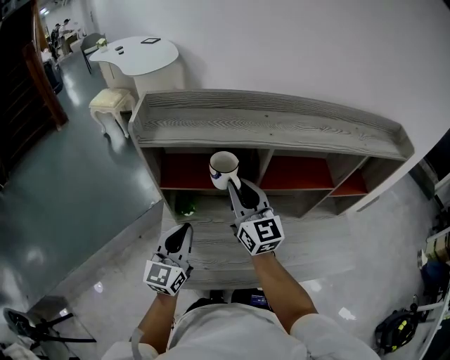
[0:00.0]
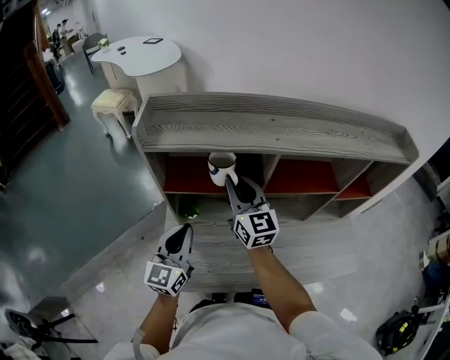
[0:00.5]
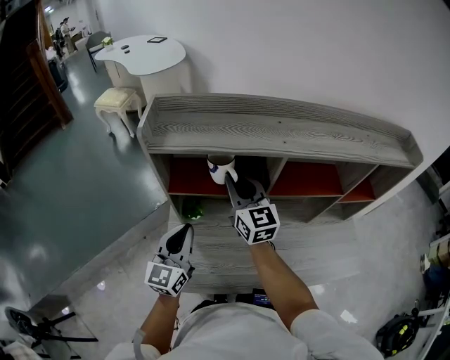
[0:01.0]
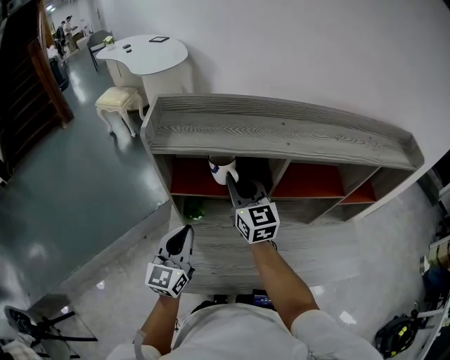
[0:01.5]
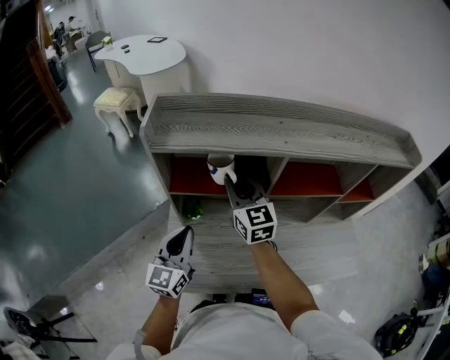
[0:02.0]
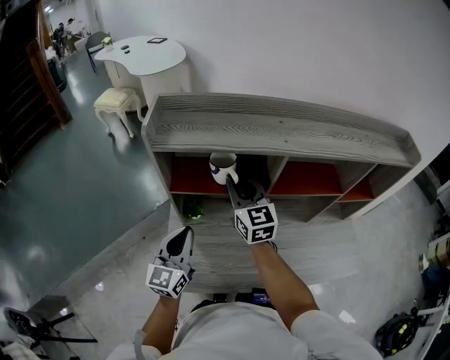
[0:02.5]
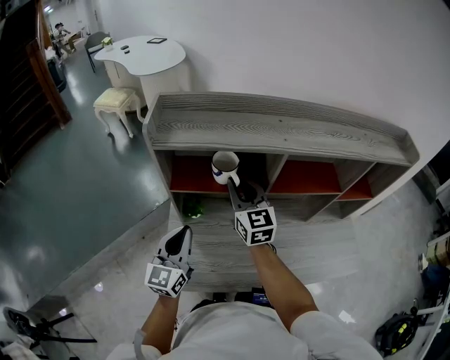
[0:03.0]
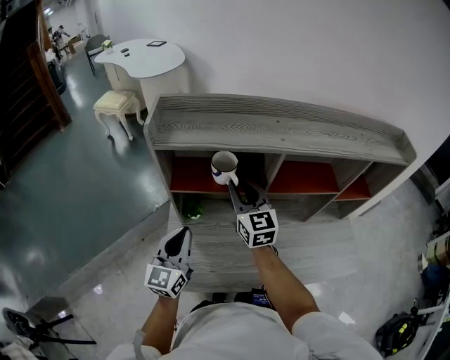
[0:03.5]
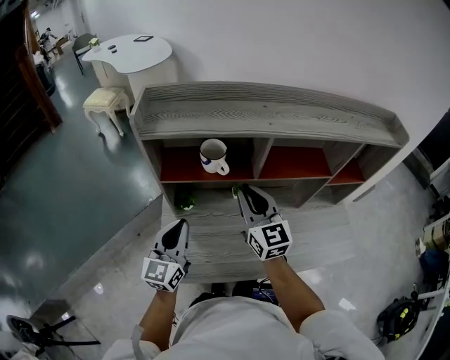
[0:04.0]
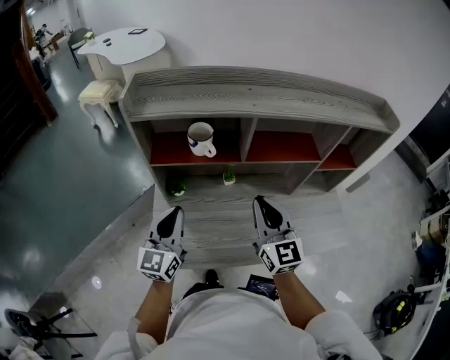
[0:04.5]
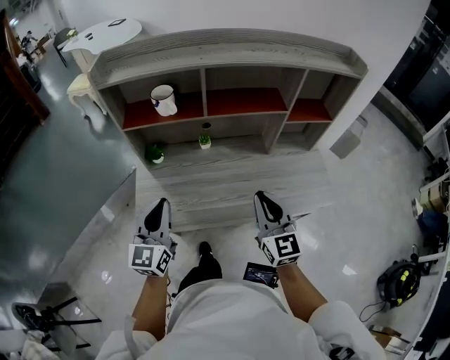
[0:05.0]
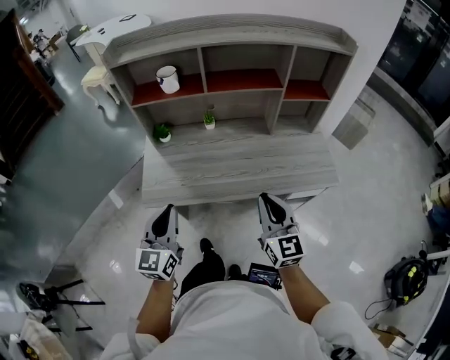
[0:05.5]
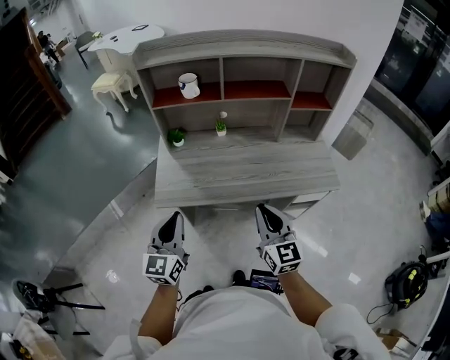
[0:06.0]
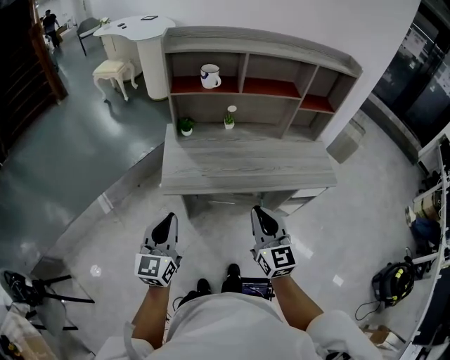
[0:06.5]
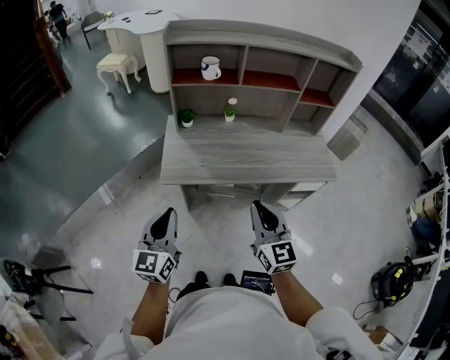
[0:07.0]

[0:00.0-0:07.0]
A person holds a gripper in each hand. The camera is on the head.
0:00.0 to 0:02.0: The right gripper travels forward by some 5 cm.
0:02.0 to 0:03.5: The grippers make only small movements.
0:03.5 to 0:05.0: The right gripper moves backward and to the right, some 35 cm; the left gripper moves backward and to the right, roughly 20 cm.
0:05.0 to 0:07.0: The right gripper heads backward and to the left, covering about 25 cm; the left gripper heads backward, covering approximately 25 cm.

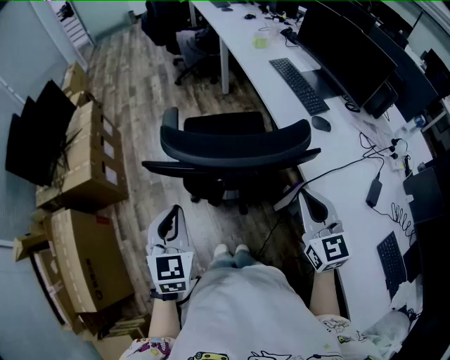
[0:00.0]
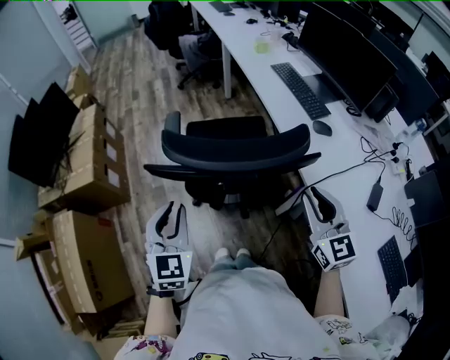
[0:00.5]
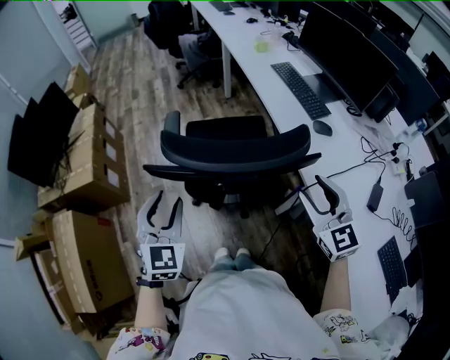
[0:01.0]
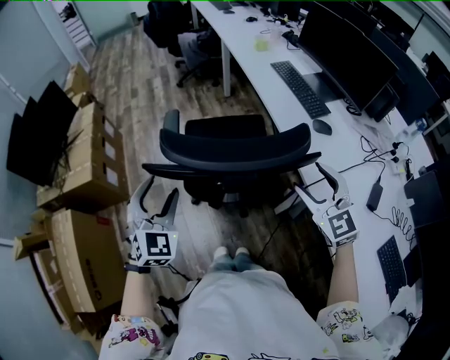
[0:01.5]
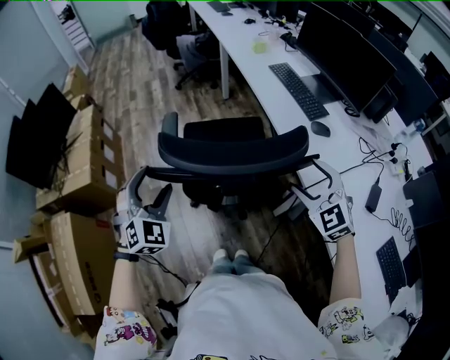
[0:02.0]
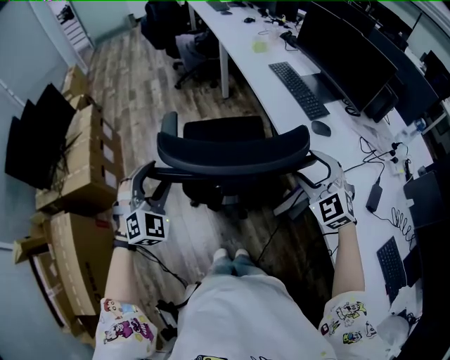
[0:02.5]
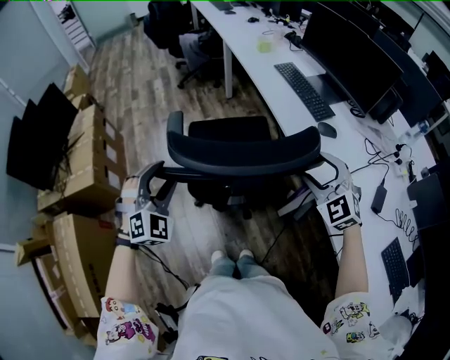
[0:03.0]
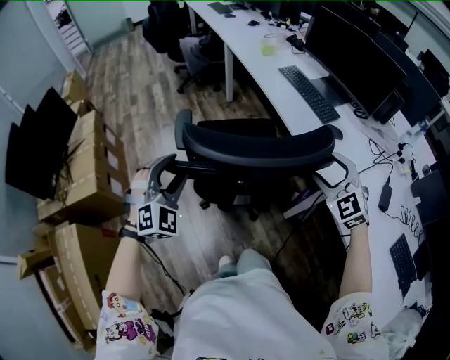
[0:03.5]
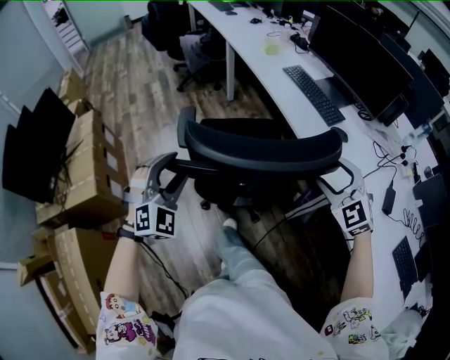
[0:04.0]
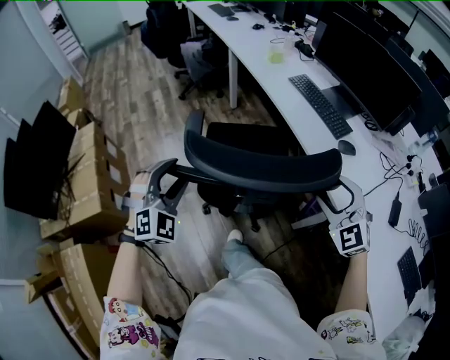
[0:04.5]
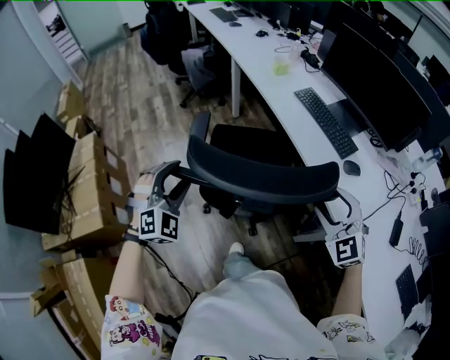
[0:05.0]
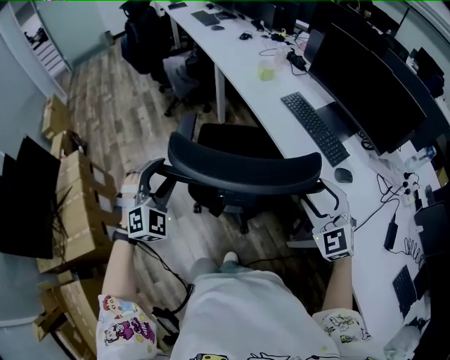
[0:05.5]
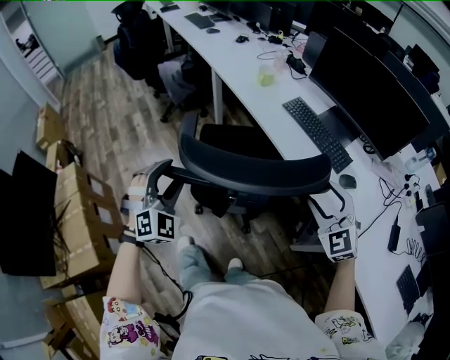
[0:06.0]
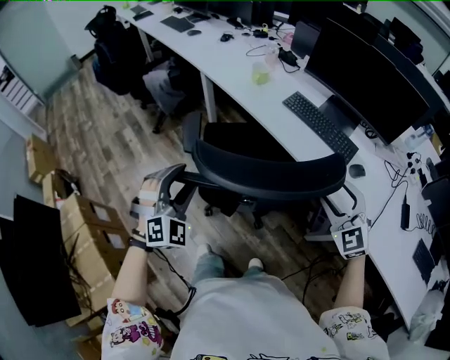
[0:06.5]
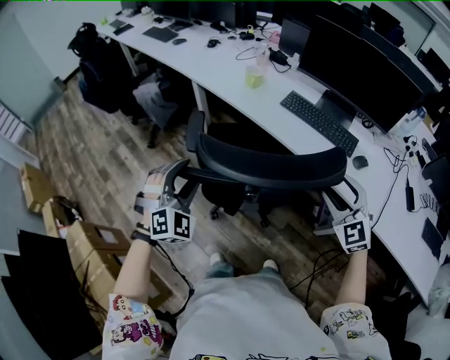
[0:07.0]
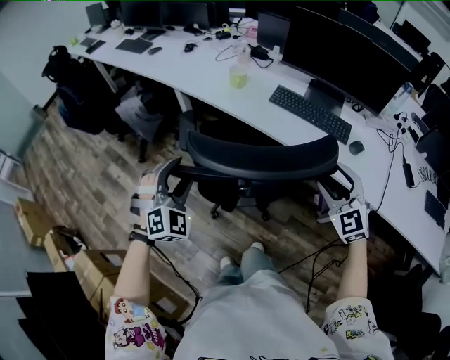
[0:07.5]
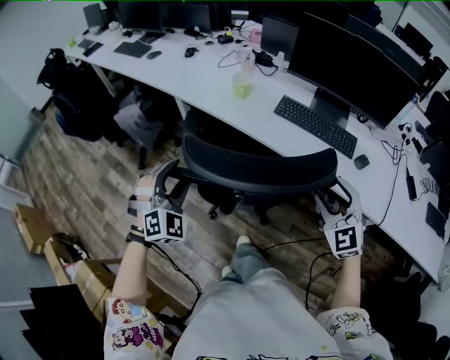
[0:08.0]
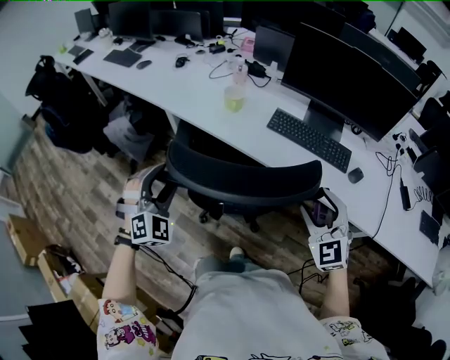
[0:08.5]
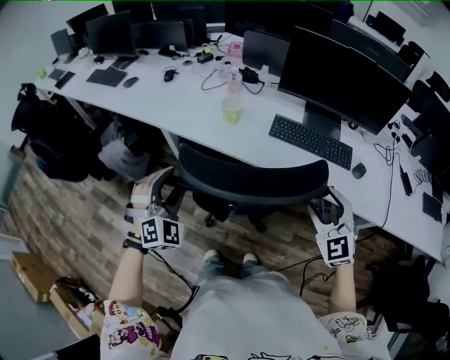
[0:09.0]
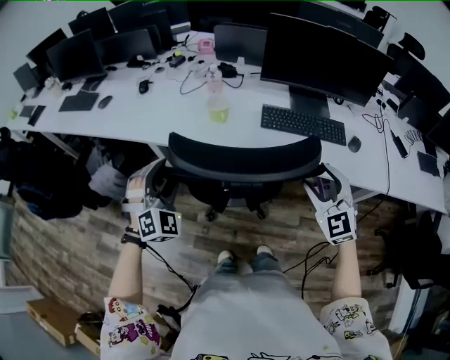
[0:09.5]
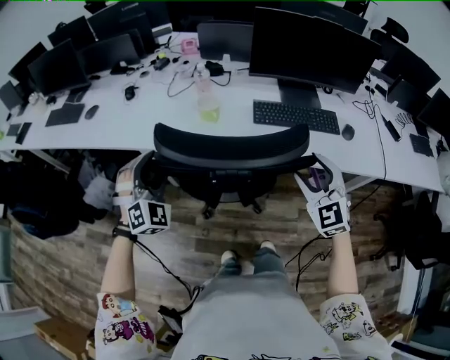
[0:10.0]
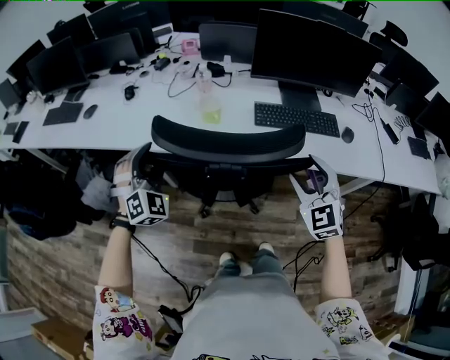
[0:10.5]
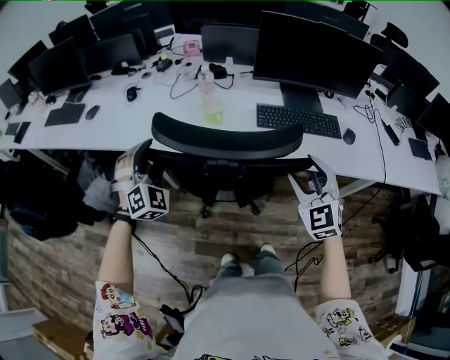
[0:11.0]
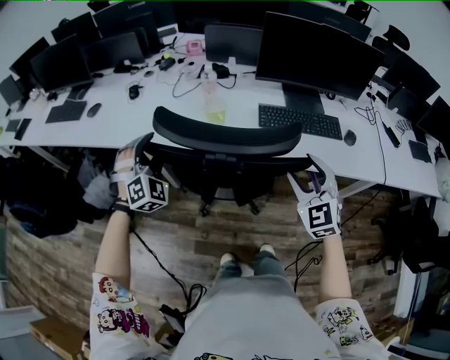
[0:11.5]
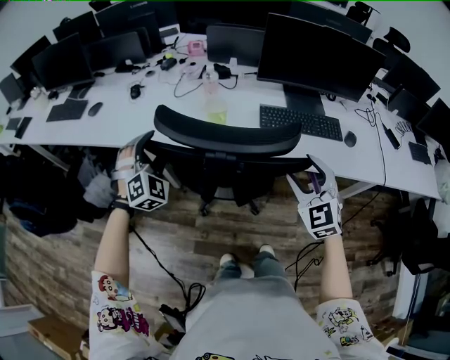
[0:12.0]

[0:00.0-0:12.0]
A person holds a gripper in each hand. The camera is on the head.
0:00.0 to 0:02.0: The two grippers go roughly 10 cm forward. The right gripper swivels approximately 40 degrees, and opens up. The left gripper turns by roughly 40 degrees, and opens.
0:02.0 to 0:04.0: The right gripper shifts by about 5 cm, while the left gripper heads forward, covering some 10 cm.
0:04.0 to 0:06.0: The two grippers go roughly 25 cm forward.
0:06.0 to 0:08.0: The left gripper changes place by about 25 cm, and rotates approximately 30 degrees; the right gripper shifts by approximately 15 cm, and turns by roughly 30 degrees.
0:08.0 to 0:10.0: The left gripper moves forward, some 25 cm. Meanwhile the right gripper heads to the left and forward, covering approximately 15 cm, and rotates roughly 20 degrees.
0:10.0 to 0:12.0: The left gripper goes about 5 cm forward.

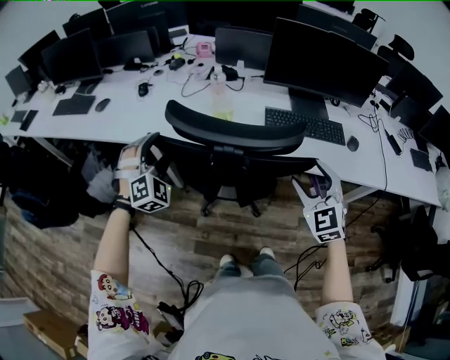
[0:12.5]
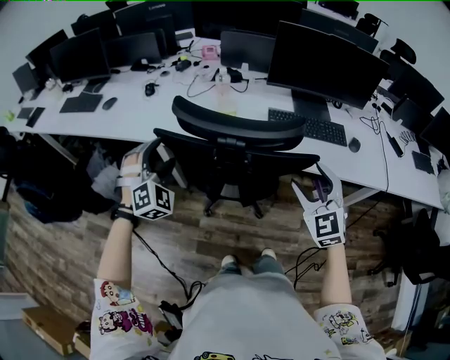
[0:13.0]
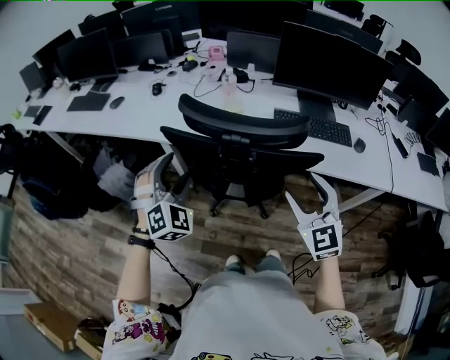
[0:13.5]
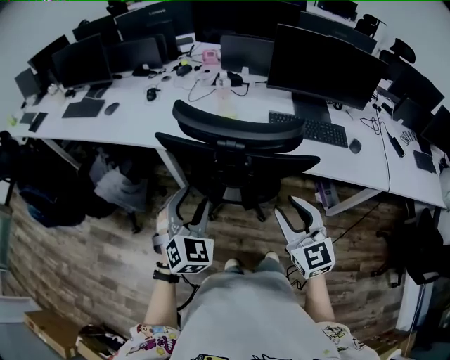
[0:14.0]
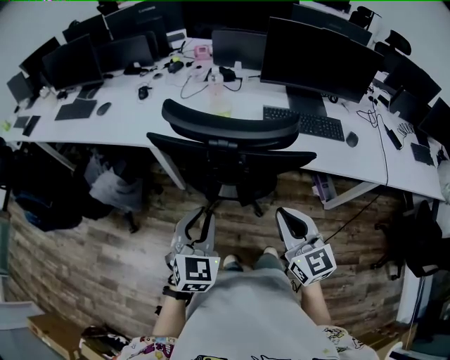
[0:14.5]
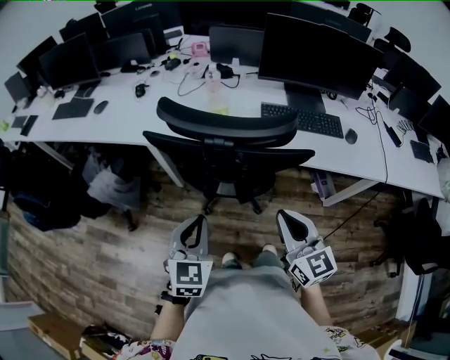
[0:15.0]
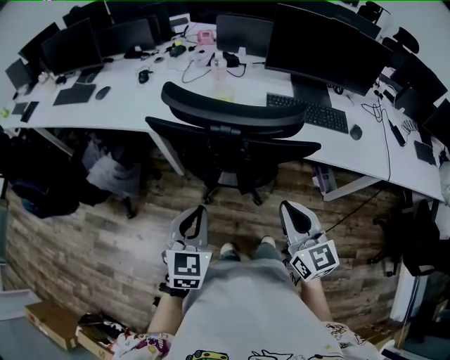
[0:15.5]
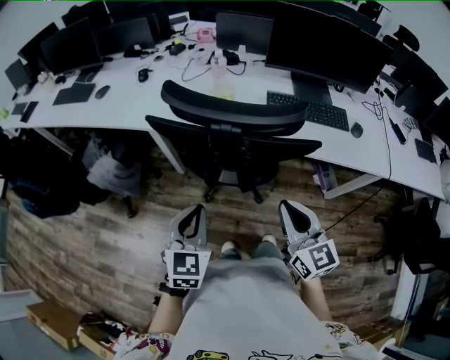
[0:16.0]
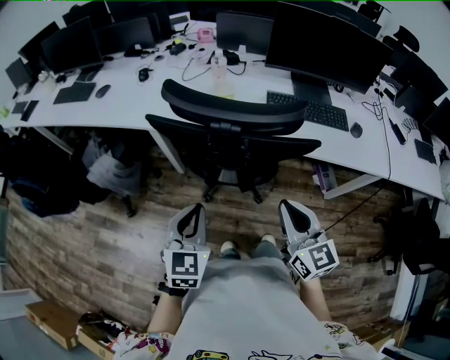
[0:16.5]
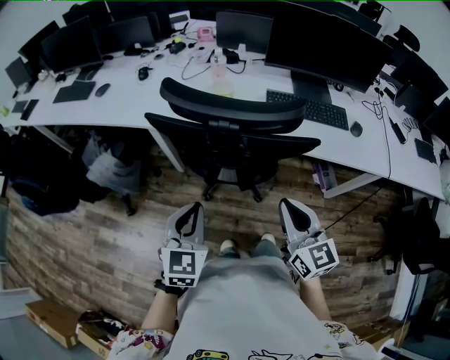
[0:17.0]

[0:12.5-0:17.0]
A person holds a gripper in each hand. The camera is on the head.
0:12.5 to 0:14.5: The left gripper moves backward and to the right, approximately 25 cm, twists roughly 50 degrees counterclockwise, seen from behind, and closes up, while the right gripper shifts some 15 cm backward and to the left, turns by roughly 40 degrees, and closes.
0:14.5 to 0:17.0: The grippers stay close to where they were, moving slightly.

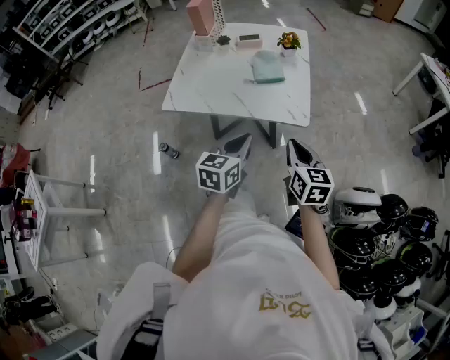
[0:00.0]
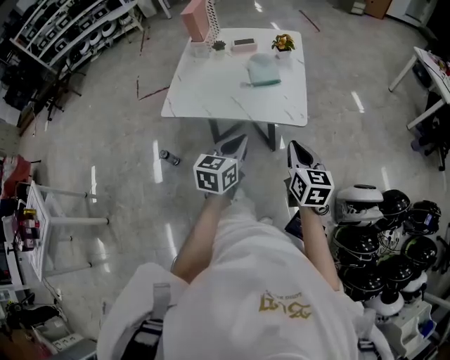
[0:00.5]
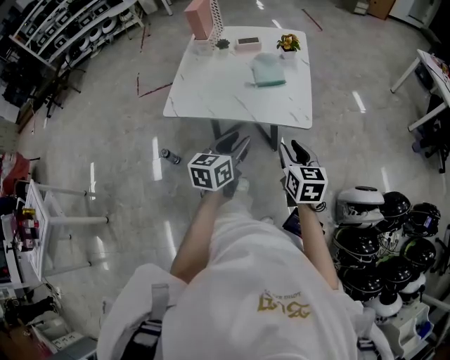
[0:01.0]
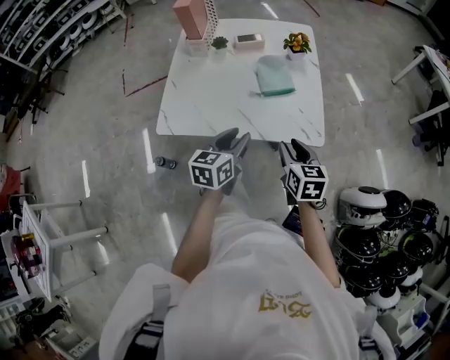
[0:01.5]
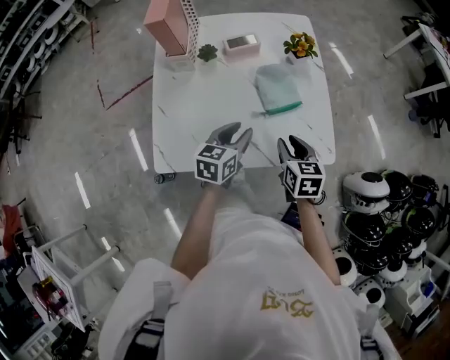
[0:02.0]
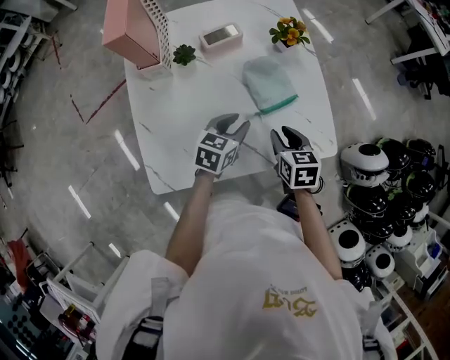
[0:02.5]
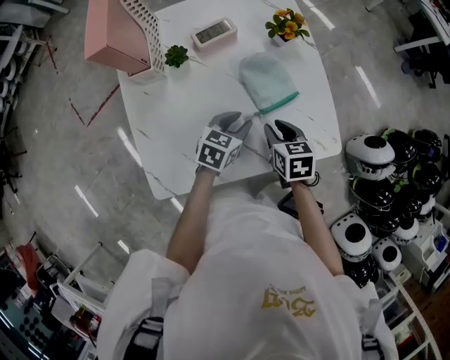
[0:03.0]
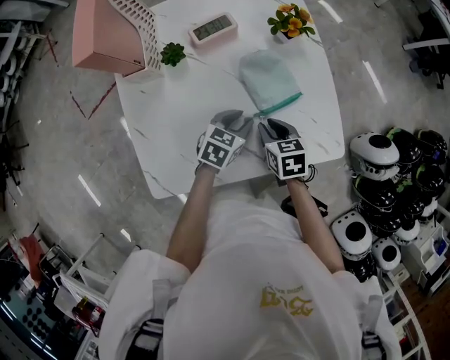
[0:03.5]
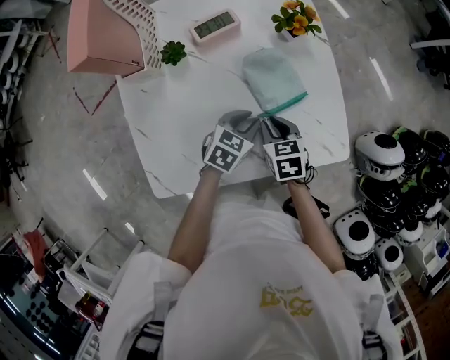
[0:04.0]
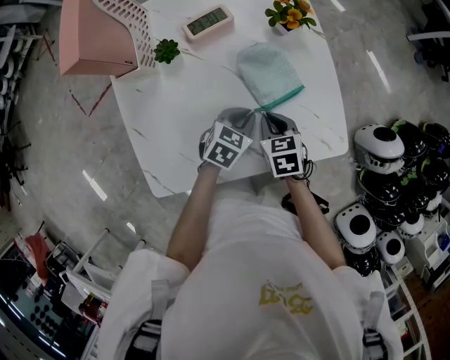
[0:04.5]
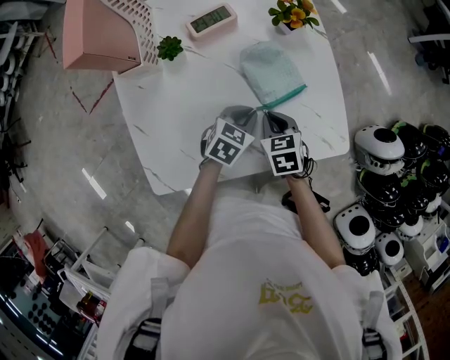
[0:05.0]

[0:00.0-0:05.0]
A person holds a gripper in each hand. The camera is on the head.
0:00.0 to 0:02.5: The right gripper shifts roughly 35 cm forward, to the left and downward, turns by roughly 30 degrees, and opens its fingers. Meanwhile the left gripper travels forward, downward and to the left by about 40 cm, rotates approximately 30 degrees, and opens up.
0:02.5 to 0:05.0: Both grippers travel together downward, about 5 cm. The right gripper closes up, while the left gripper closes its fingers.
